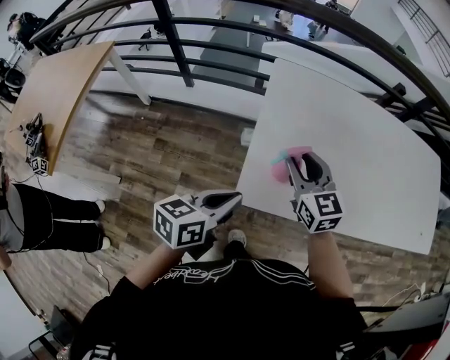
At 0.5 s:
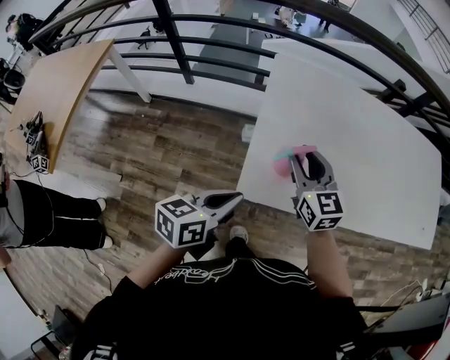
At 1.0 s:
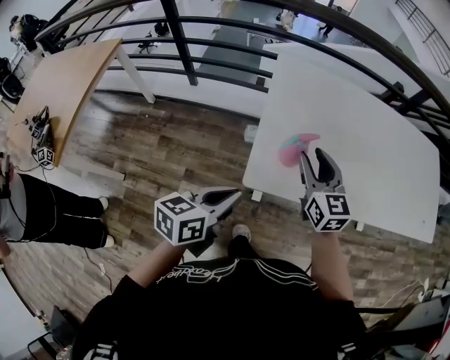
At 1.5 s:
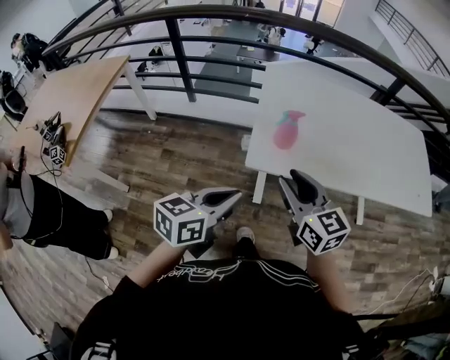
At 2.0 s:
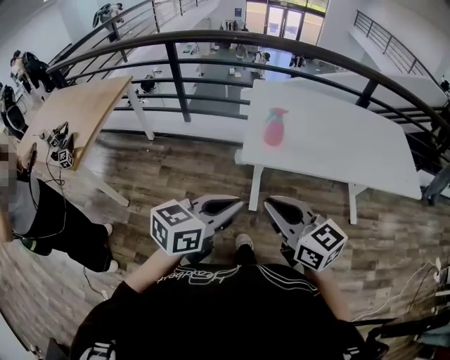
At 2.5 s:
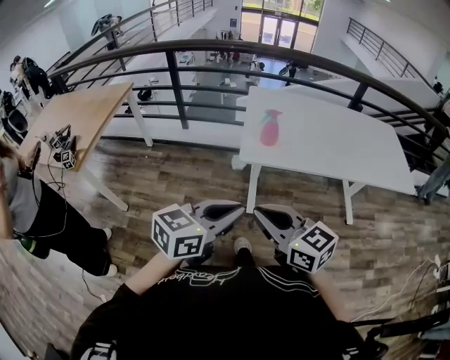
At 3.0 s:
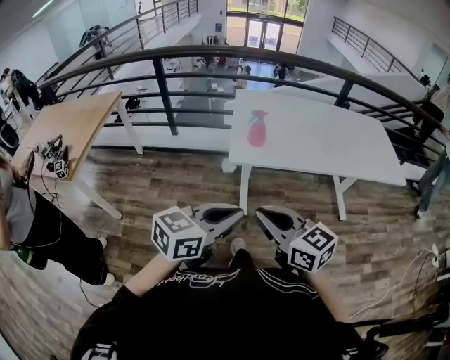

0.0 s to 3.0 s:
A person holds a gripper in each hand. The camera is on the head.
0.0 to 1.5 s: The right gripper travels backward by roughly 25 cm. The left gripper goes approximately 20 cm backward and upward.
1.5 to 3.0 s: The right gripper moves backward, some 25 cm, and closes up, while the left gripper moves backward and upward, some 20 cm.

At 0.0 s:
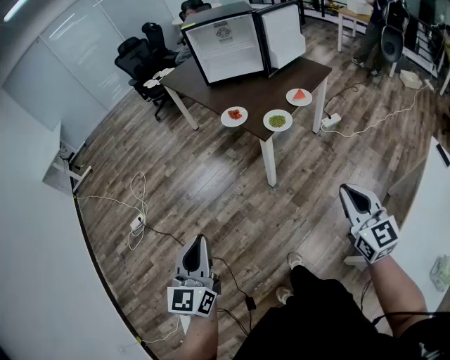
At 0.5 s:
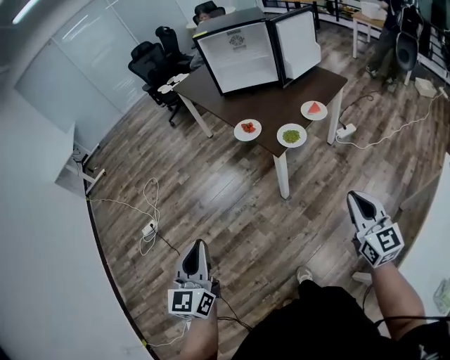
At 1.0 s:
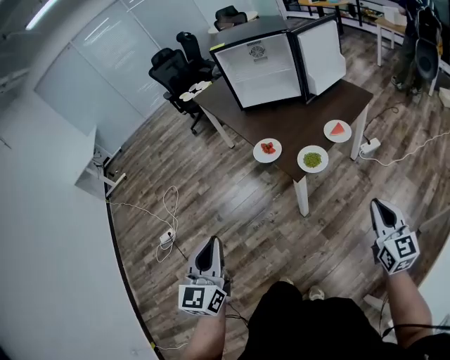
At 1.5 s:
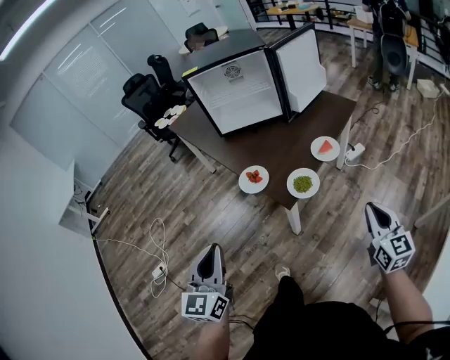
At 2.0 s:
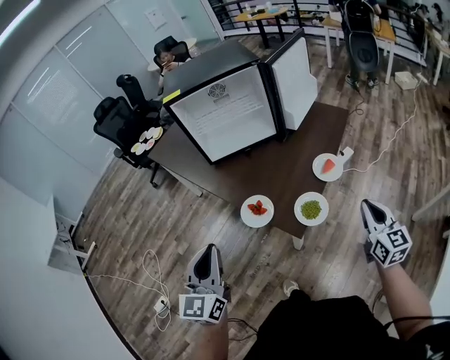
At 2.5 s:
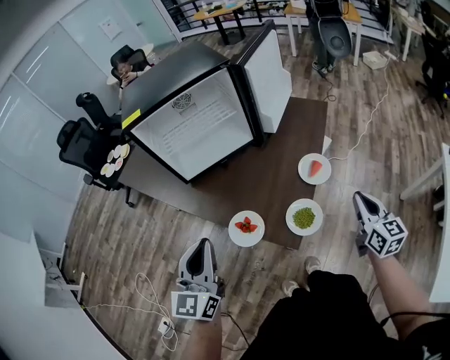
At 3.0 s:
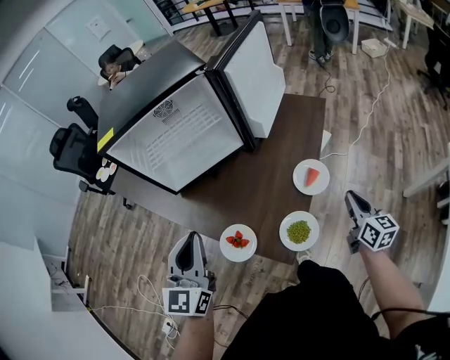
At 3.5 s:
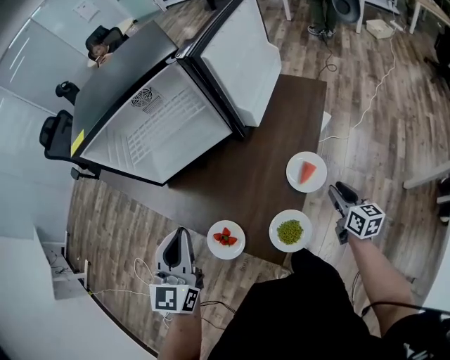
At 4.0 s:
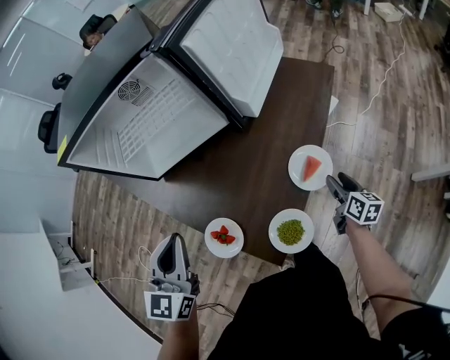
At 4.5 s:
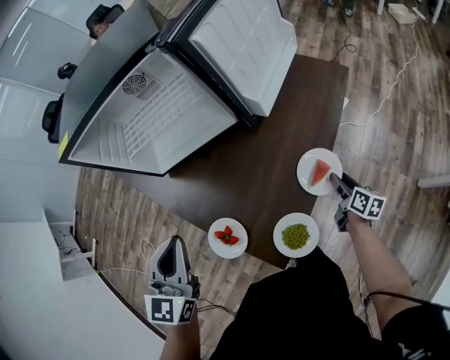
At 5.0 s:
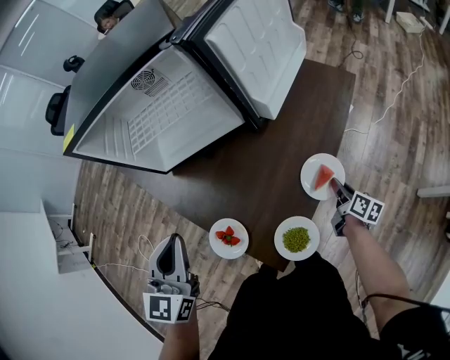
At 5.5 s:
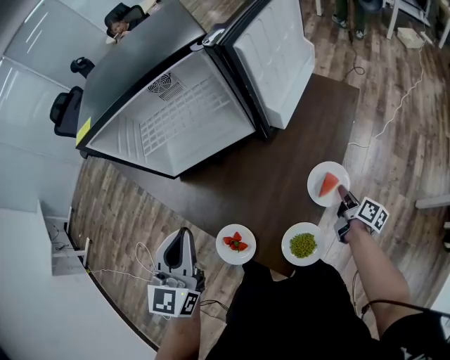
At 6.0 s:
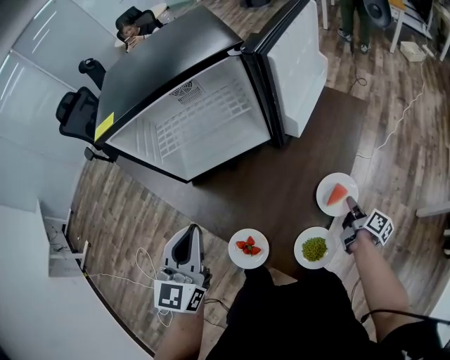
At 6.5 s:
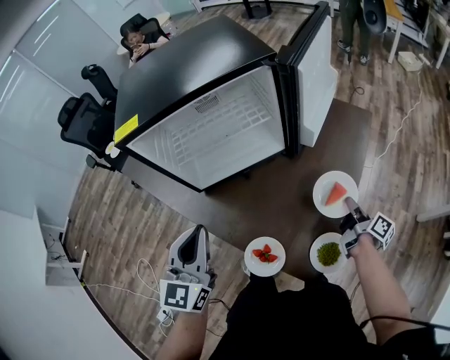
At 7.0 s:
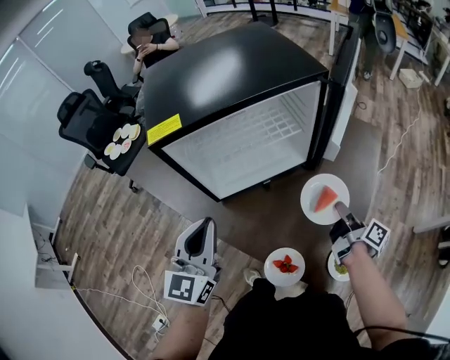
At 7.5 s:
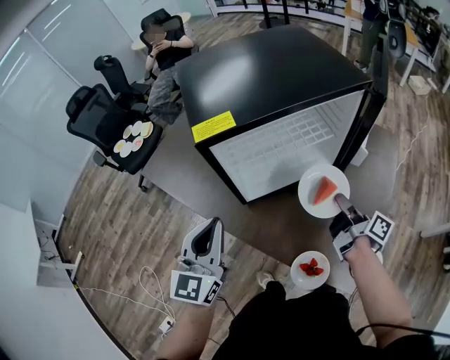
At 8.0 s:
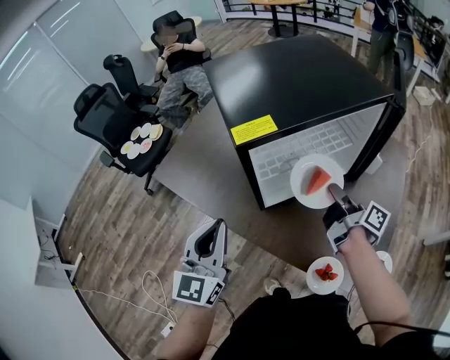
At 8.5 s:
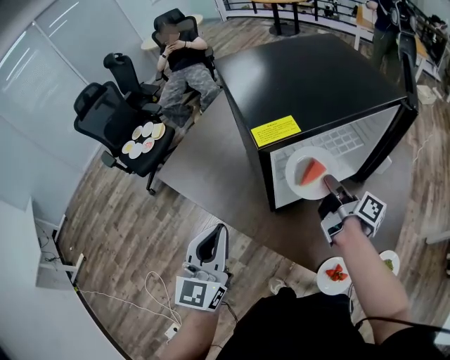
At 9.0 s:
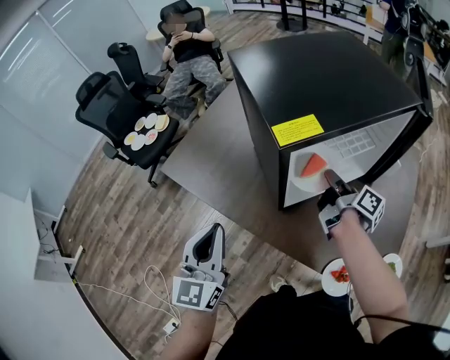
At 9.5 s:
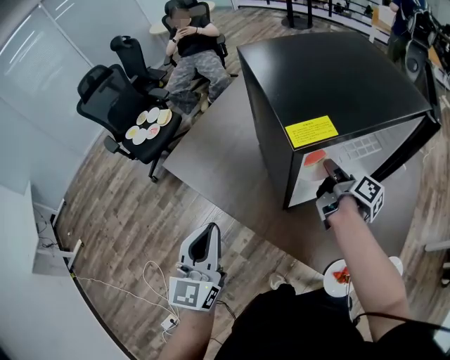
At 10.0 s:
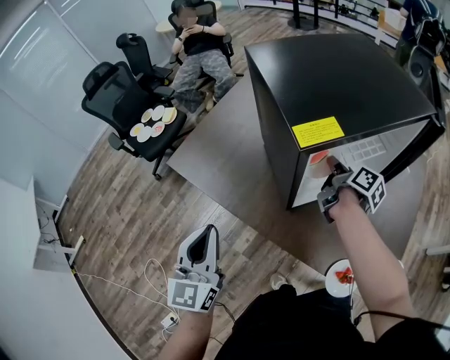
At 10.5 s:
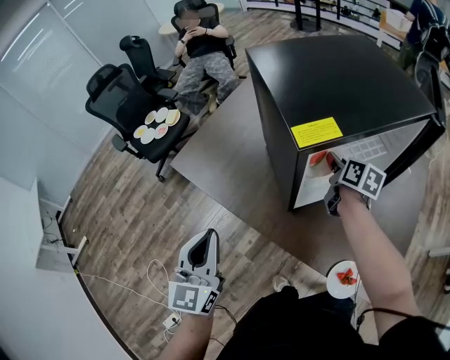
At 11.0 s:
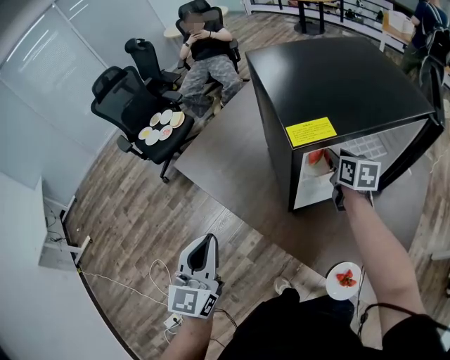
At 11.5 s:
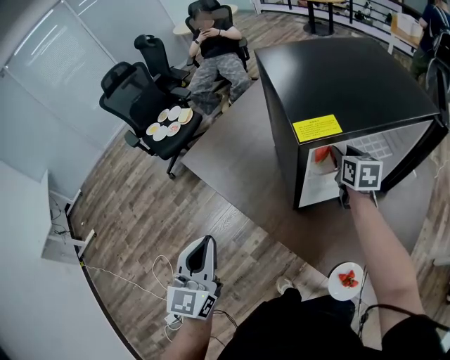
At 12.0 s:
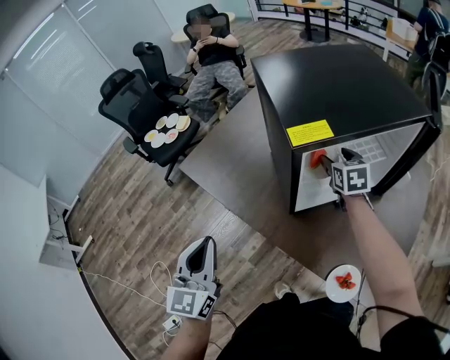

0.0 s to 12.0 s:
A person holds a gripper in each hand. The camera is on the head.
0.0 to 2.0 s: Both grippers are carried forward, some 50 cm. The right gripper swivels some 30 degrees.
2.0 to 4.0 s: The right gripper goes roughly 35 cm downward and forward, rotates some 40 degrees, and opens up; the left gripper shifts about 30 cm forward.
4.0 to 6.0 s: The left gripper is displaced to the left by approximately 5 cm, while the right gripper turns by approximately 30 degrees, and closes up.
6.0 to 8.0 s: The right gripper travels to the left and upward by about 50 cm, and changes its angle by roughly 20 degrees, while the left gripper goes some 30 cm to the left.
8.0 to 10.0 s: The left gripper goes approximately 10 cm to the left; the right gripper travels forward and to the left by approximately 15 cm.
10.0 to 12.0 s: The right gripper rolls counterclockwise, seen from behind, by roughly 70 degrees, and opens.

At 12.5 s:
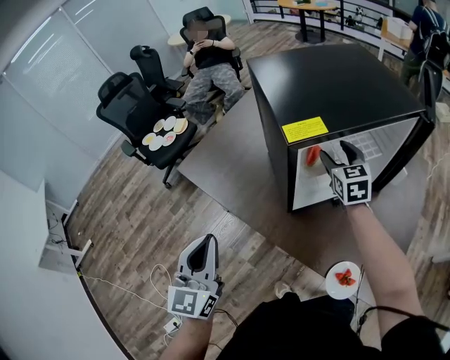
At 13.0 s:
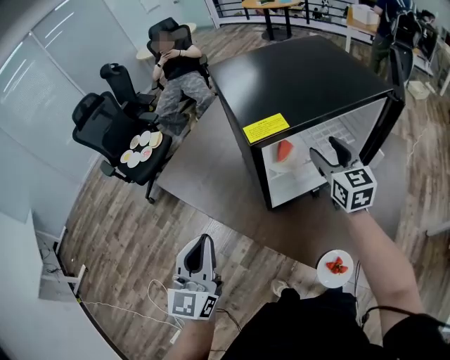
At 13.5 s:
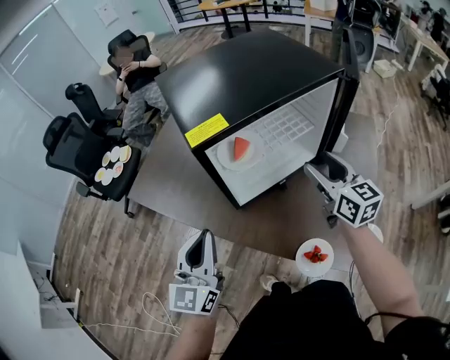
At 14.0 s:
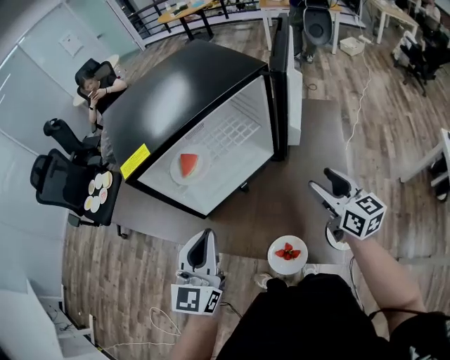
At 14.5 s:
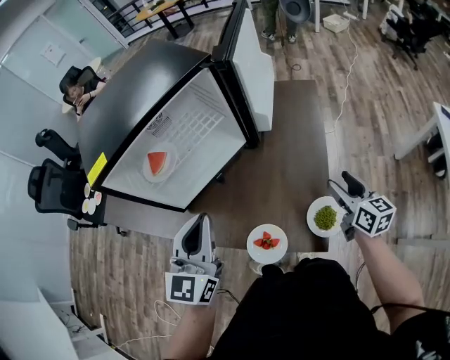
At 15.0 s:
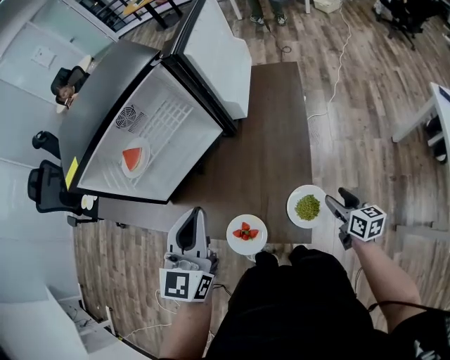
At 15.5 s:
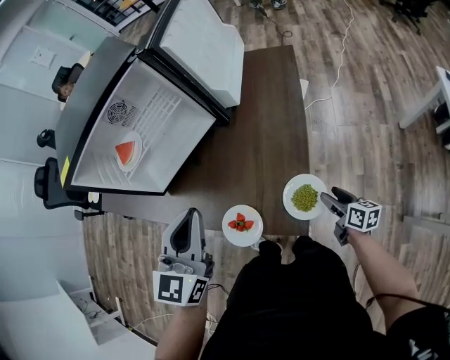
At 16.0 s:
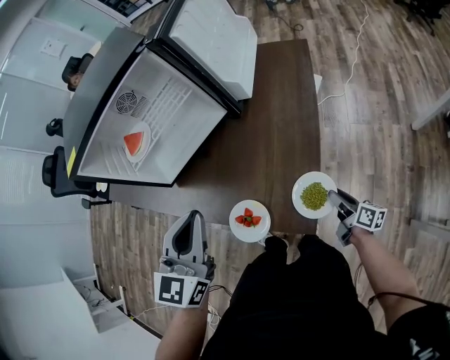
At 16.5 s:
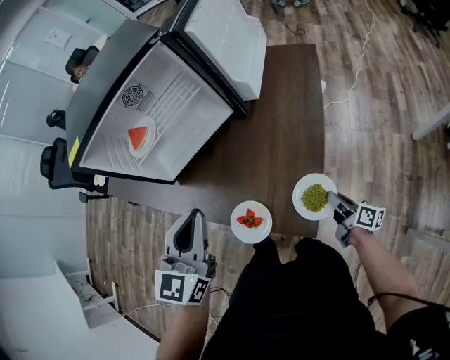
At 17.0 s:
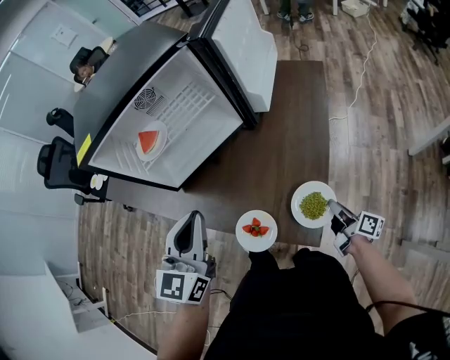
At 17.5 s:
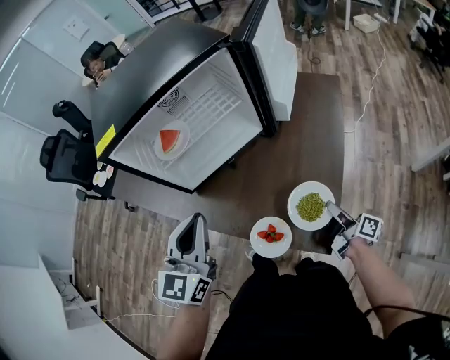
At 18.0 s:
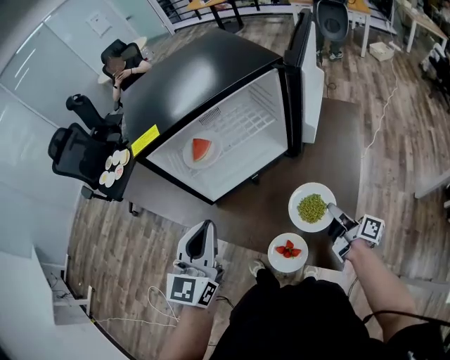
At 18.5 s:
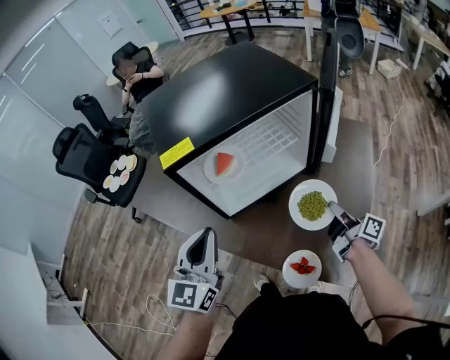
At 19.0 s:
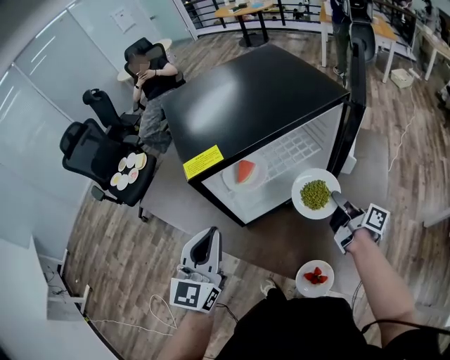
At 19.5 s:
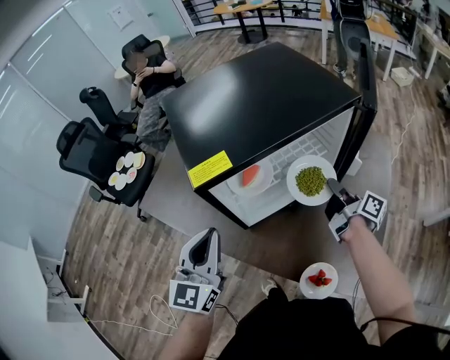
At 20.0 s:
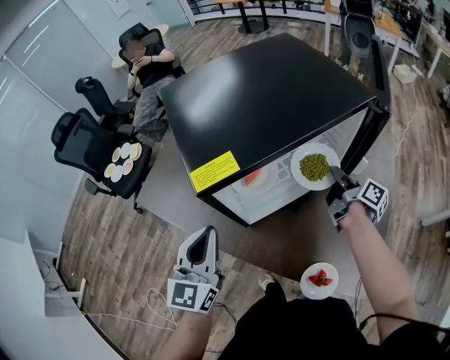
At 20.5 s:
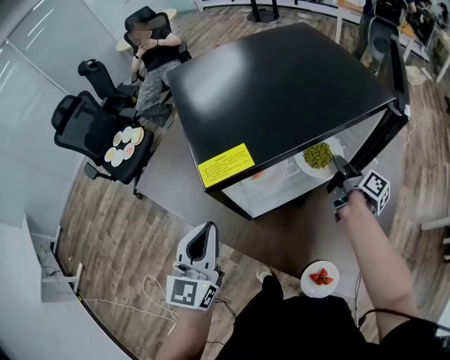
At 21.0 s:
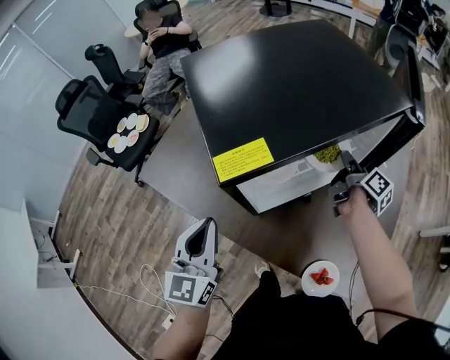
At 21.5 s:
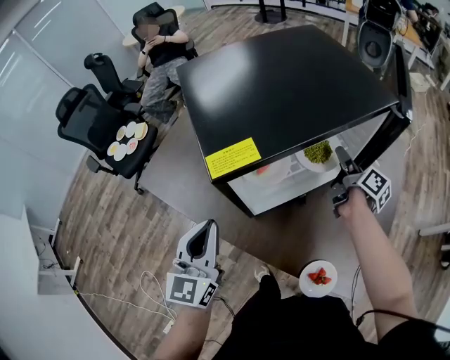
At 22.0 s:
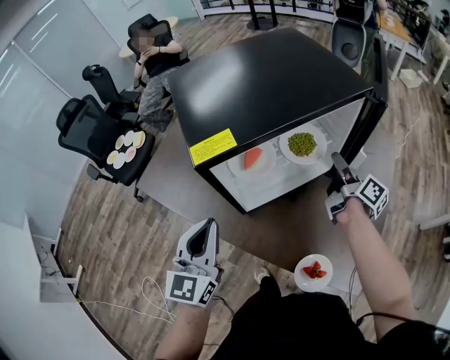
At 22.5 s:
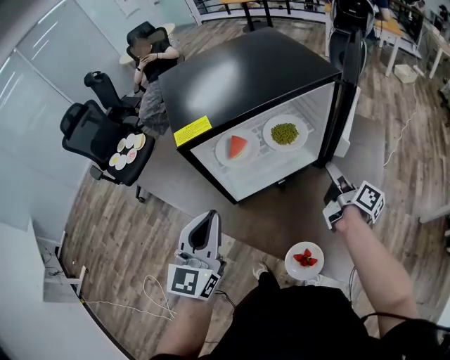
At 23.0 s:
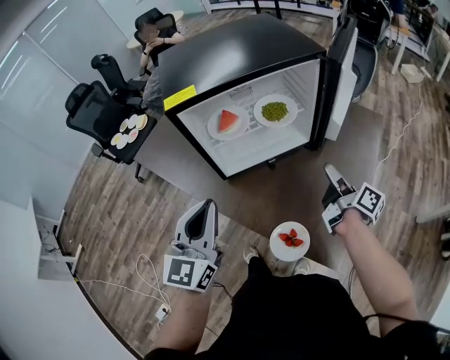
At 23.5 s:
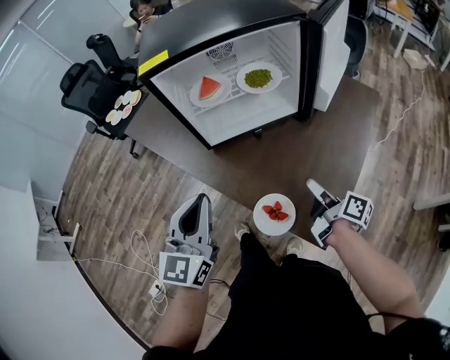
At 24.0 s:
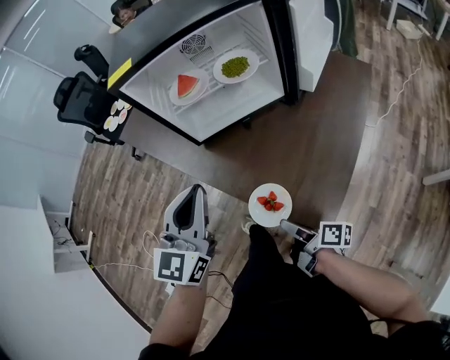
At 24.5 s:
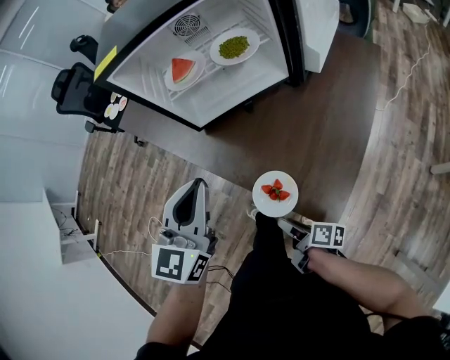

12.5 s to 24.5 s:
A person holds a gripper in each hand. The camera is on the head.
12.5 to 14.5 s: The right gripper is displaced to the right and backward by about 50 cm, and turns by approximately 40 degrees; the left gripper goes some 40 cm to the right, and turns by approximately 30 degrees.
14.5 to 16.5 s: The left gripper shifts about 10 cm to the right. Meanwhile the right gripper travels downward and backward by approximately 25 cm, changes its angle by approximately 40 degrees, and closes its fingers.
16.5 to 18.5 s: The left gripper travels to the left by about 25 cm. The right gripper travels upward, forward and to the left by approximately 35 cm, and turns by some 20 degrees.
18.5 to 20.5 s: The left gripper shifts some 10 cm to the left and forward, while the right gripper shifts approximately 20 cm forward.
20.5 to 22.5 s: The right gripper moves backward, approximately 10 cm, and opens; the left gripper heads to the right and backward, covering approximately 10 cm.
22.5 to 24.5 s: The left gripper travels backward, to the right and downward by roughly 20 cm. Meanwhile the right gripper moves backward, downward and to the left, roughly 40 cm, and turns by approximately 40 degrees.
